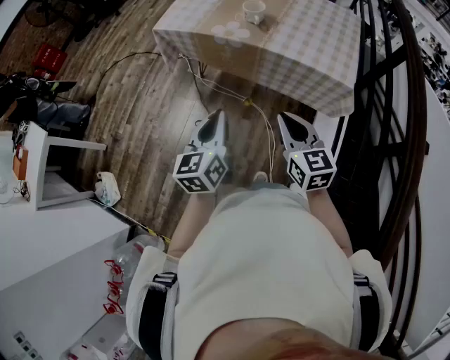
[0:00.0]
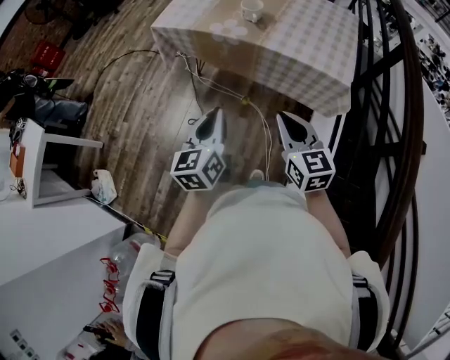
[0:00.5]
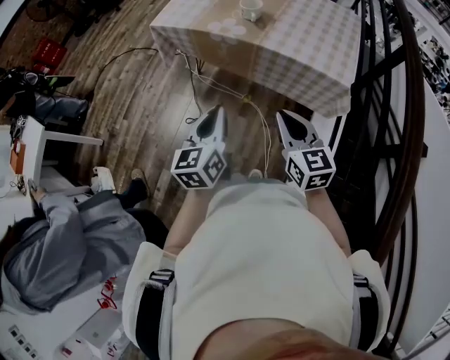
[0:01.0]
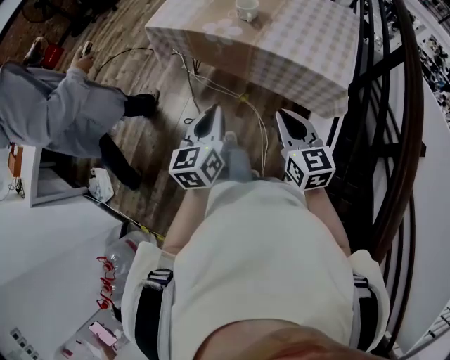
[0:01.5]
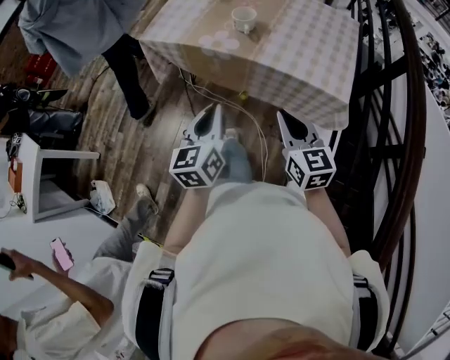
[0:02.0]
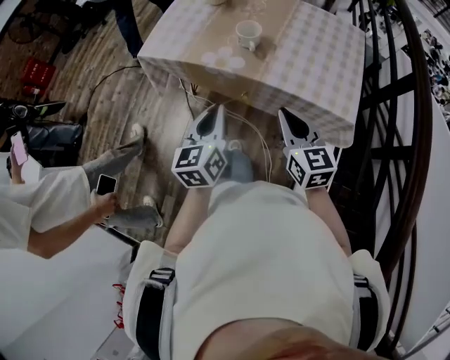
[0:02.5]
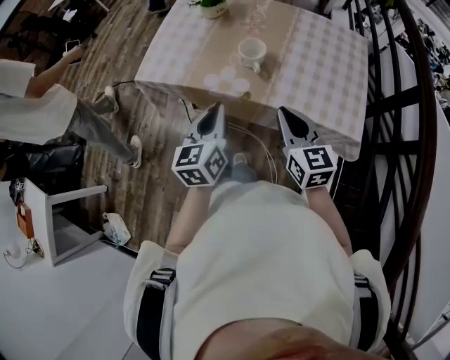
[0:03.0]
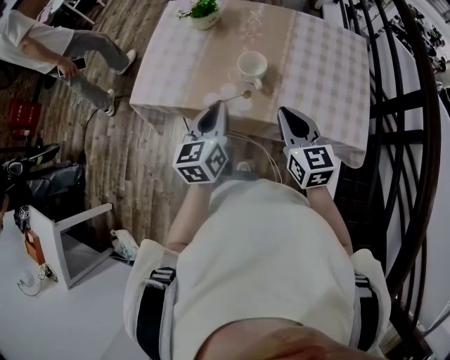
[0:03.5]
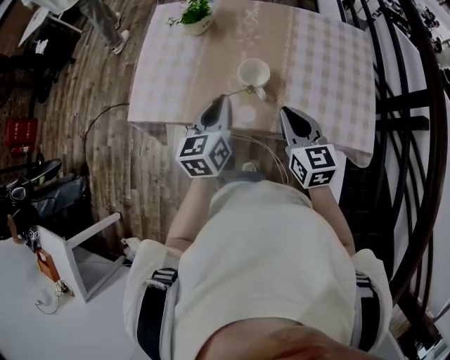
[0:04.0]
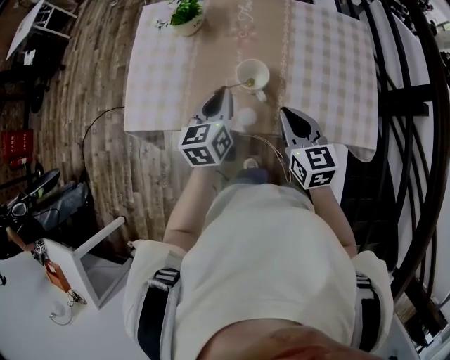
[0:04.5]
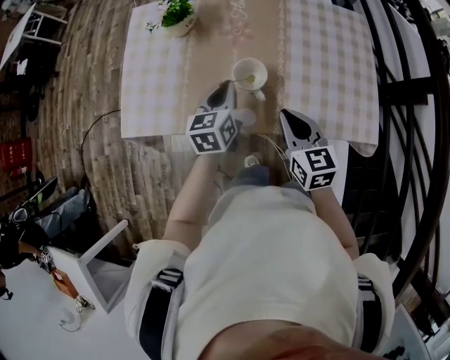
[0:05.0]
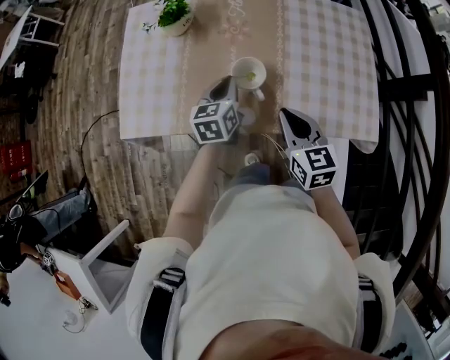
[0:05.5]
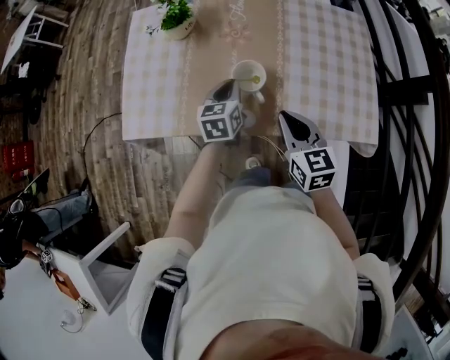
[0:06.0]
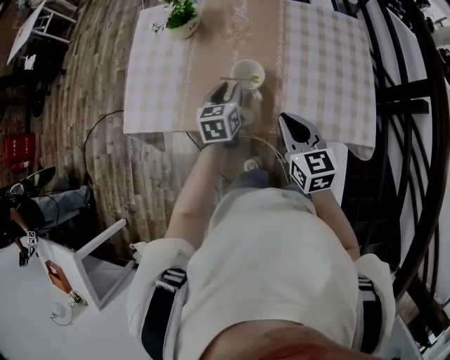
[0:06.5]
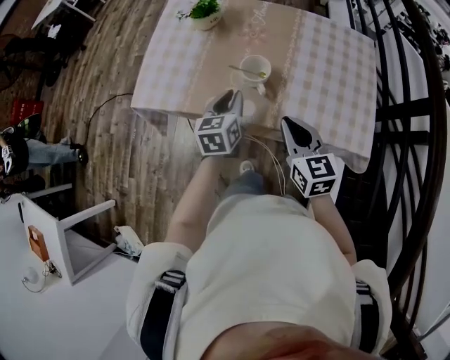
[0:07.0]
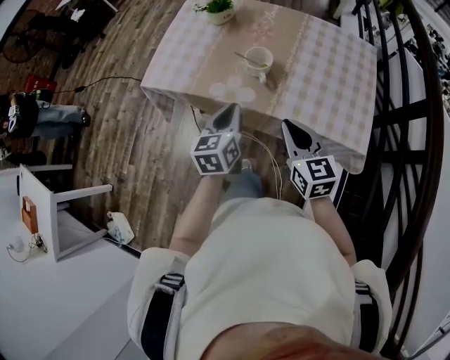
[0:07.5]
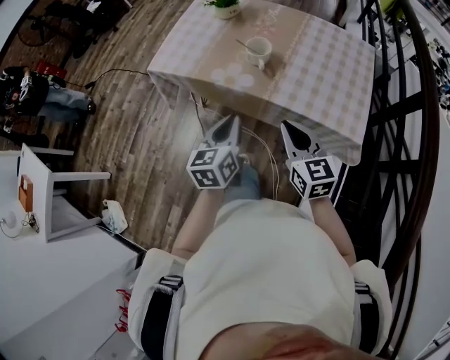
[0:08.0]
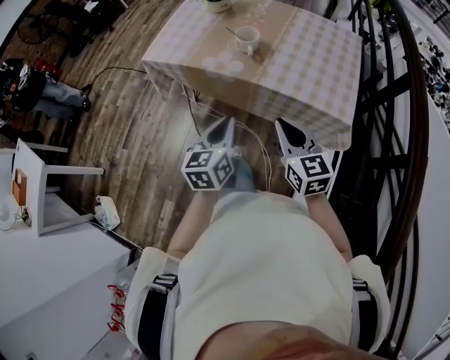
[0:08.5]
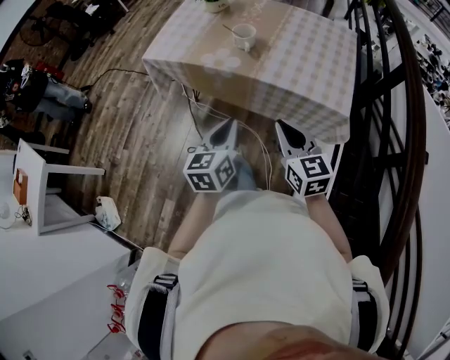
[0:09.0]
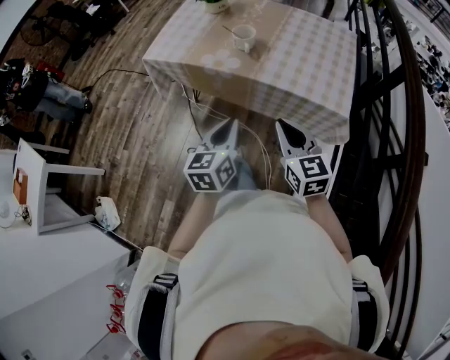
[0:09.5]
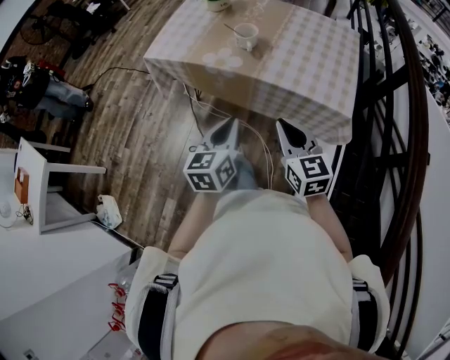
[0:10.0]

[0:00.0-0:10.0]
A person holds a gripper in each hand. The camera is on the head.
0:00.0 to 0:02.0: The two grippers go roughly 10 cm forward.
0:02.0 to 0:04.0: Both grippers move forward, some 25 cm.
0:04.0 to 0:06.0: The left gripper shifts roughly 15 cm downward and forward.
0:06.0 to 0:08.0: The left gripper is displaced backward by about 30 cm, changes its angle by about 20 degrees, and opens, then closes once more. Meanwhile the right gripper moves backward, approximately 20 cm, and turns by about 20 degrees.
0:08.0 to 0:10.0: The two grippers go roughly 10 cm backward.

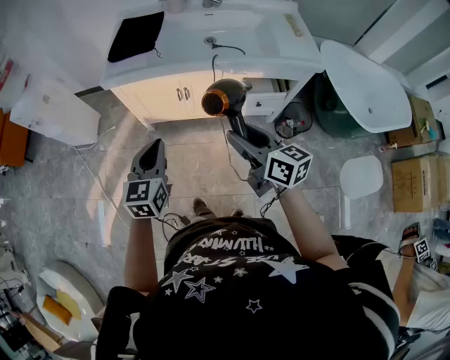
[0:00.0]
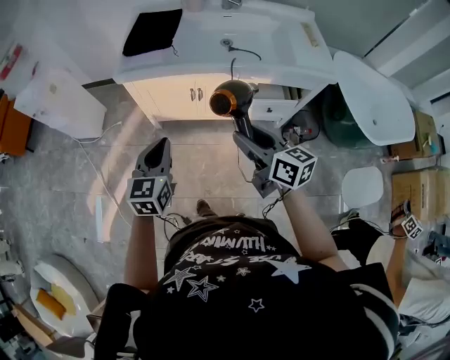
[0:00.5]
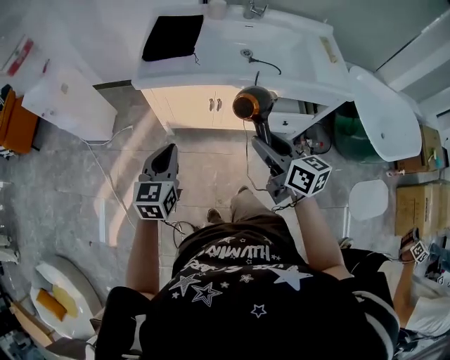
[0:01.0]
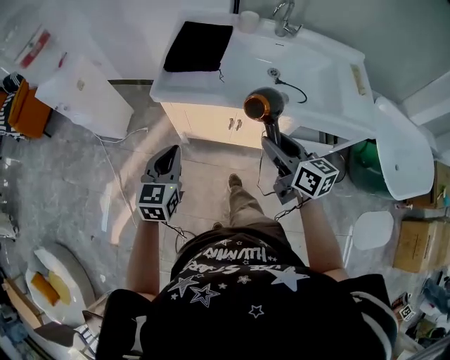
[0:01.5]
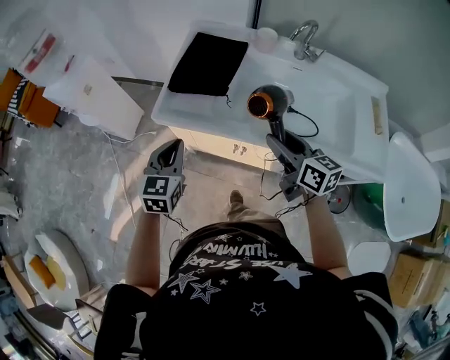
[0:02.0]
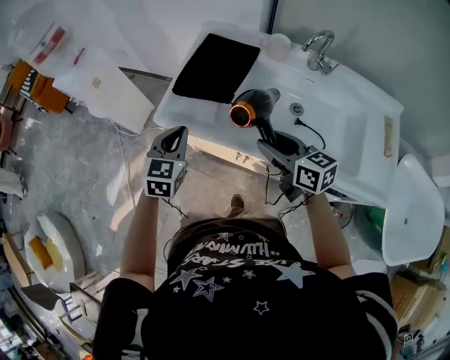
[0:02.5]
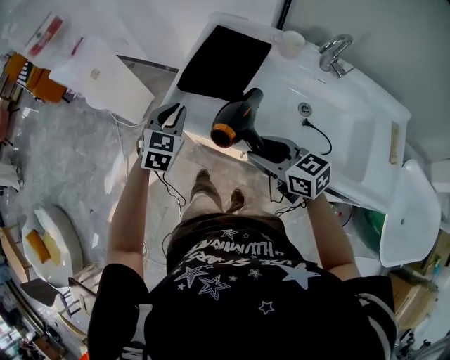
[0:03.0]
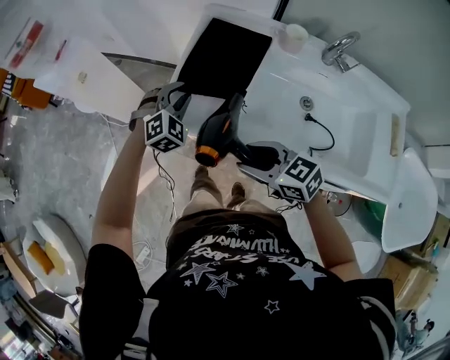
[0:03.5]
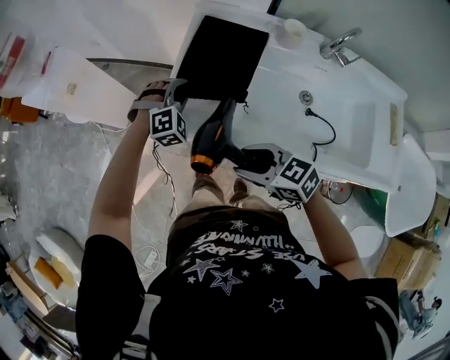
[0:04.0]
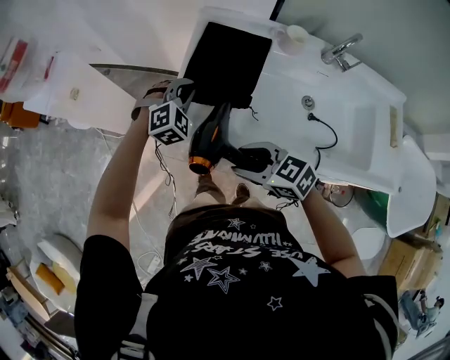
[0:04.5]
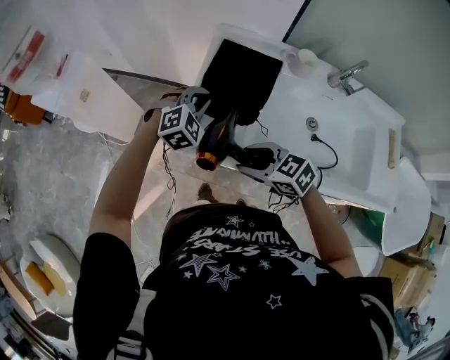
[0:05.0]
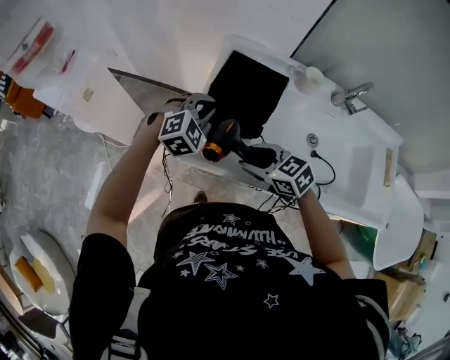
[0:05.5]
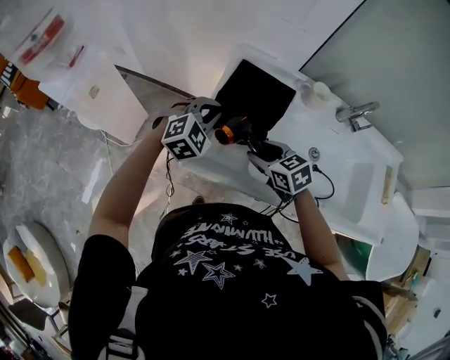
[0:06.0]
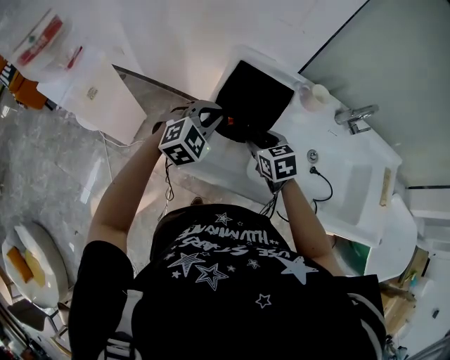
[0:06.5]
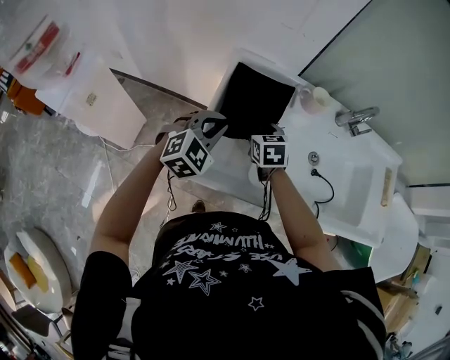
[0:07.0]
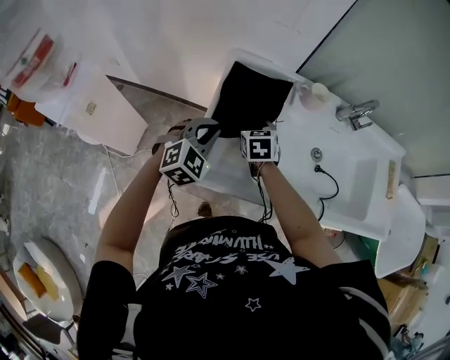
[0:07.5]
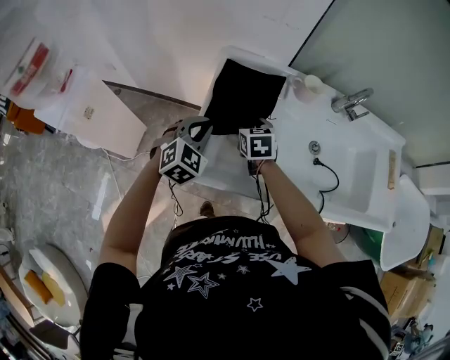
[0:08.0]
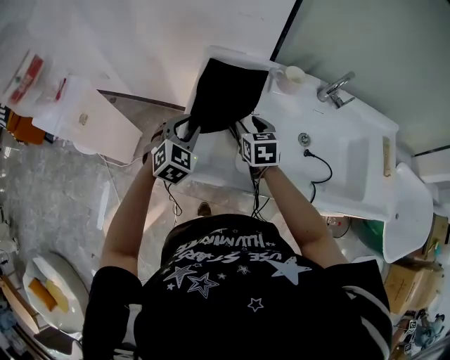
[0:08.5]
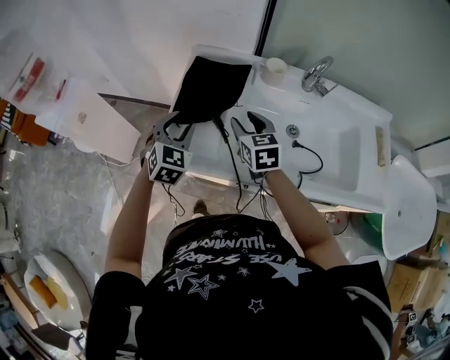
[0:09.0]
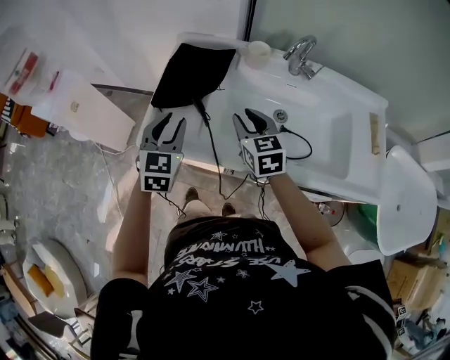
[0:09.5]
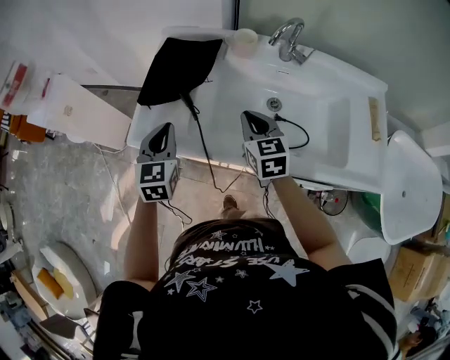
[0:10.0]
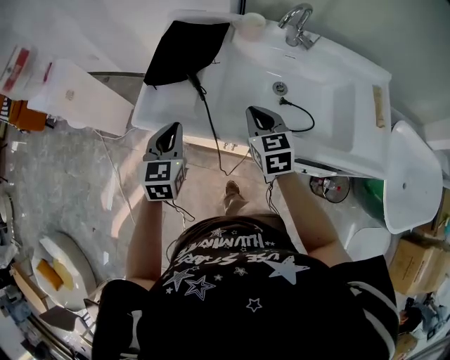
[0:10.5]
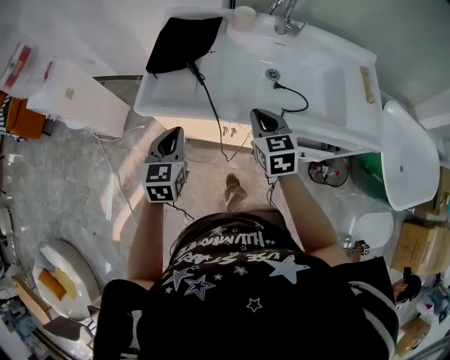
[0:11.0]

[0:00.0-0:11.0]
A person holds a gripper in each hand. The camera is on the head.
0:00.0 to 0:02.0: The two grippers go about 30 cm forward.
0:02.0 to 0:03.5: The left gripper shifts about 20 cm forward, twists roughly 50 degrees clockwise, seen from behind, and opens up, while the right gripper heads to the left, forward and downward, covering approximately 15 cm, and turns by some 40 degrees.
0:03.5 to 0:05.5: The right gripper moves forward, roughly 15 cm; the left gripper shifts about 5 cm forward, and closes.
0:05.5 to 0:07.5: The right gripper ends up roughly 20 cm from where it was, and rotates roughly 40 degrees.
0:07.5 to 0:09.0: The right gripper travels upward, to the right and backward by approximately 15 cm; the left gripper changes place by about 5 cm, swivels approximately 20 degrees, and opens its fingers.
0:09.0 to 0:11.0: The left gripper travels backward by approximately 20 cm, swivels some 30 degrees, and closes. The right gripper heads backward and to the right, covering about 25 cm, and closes up.

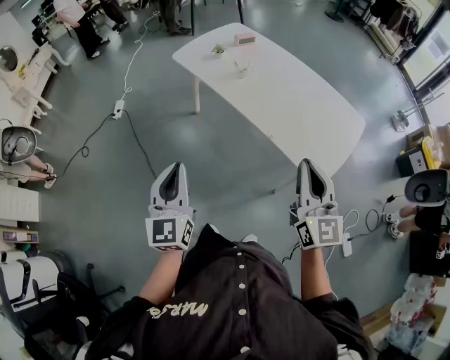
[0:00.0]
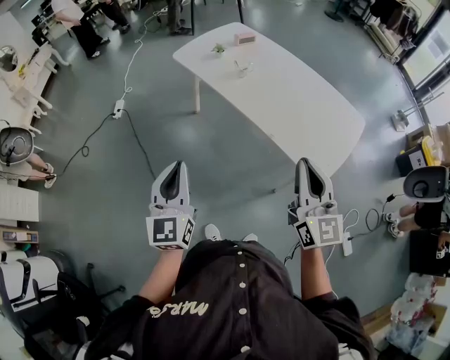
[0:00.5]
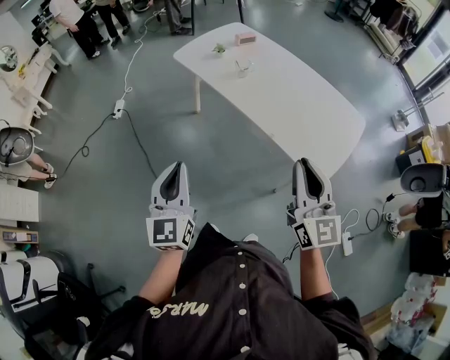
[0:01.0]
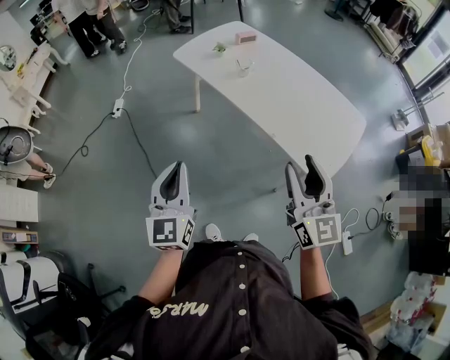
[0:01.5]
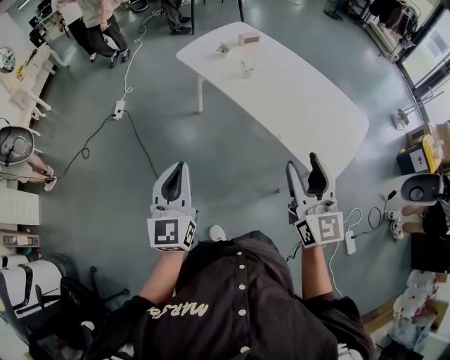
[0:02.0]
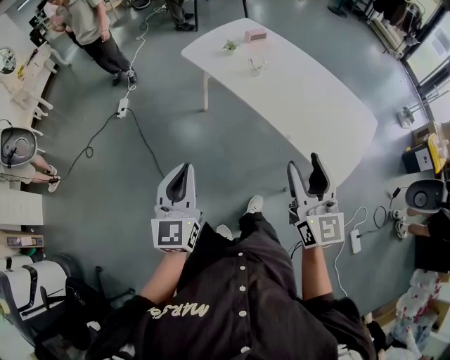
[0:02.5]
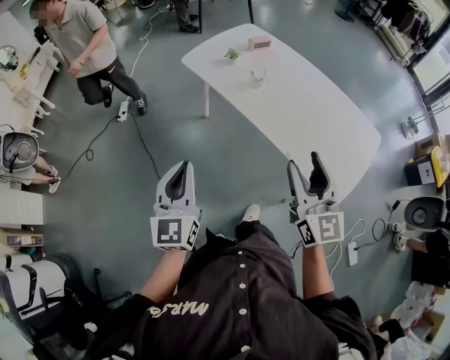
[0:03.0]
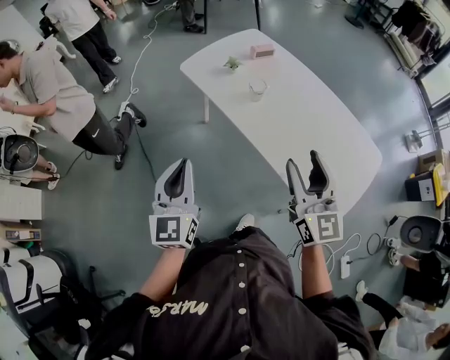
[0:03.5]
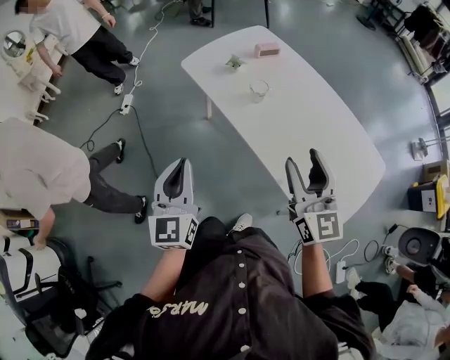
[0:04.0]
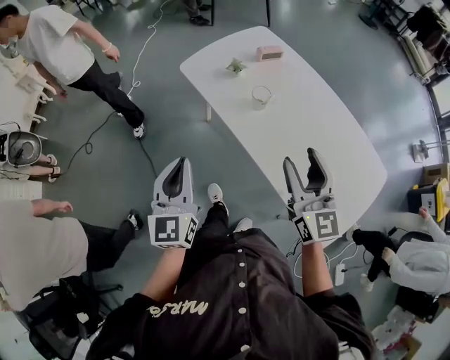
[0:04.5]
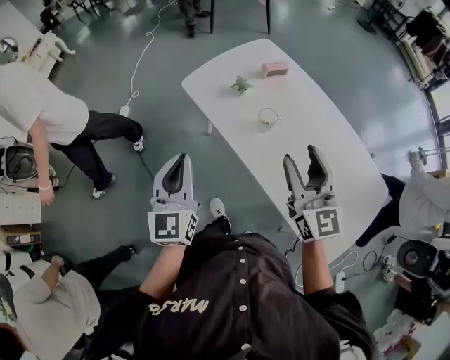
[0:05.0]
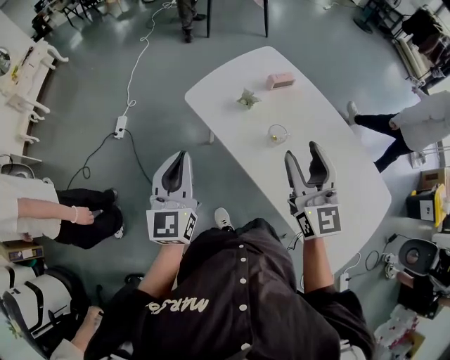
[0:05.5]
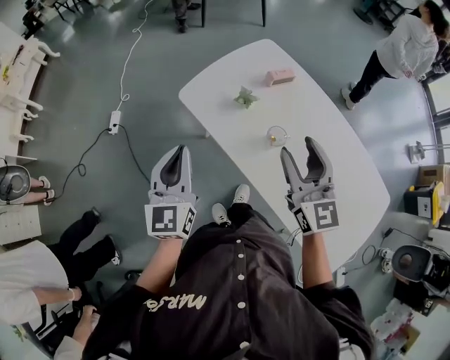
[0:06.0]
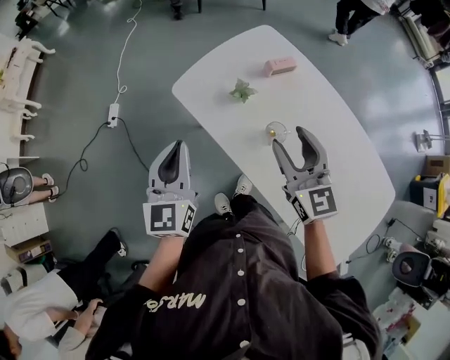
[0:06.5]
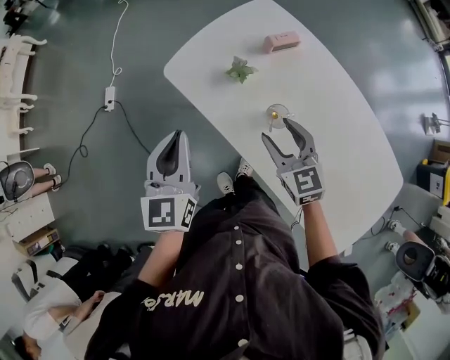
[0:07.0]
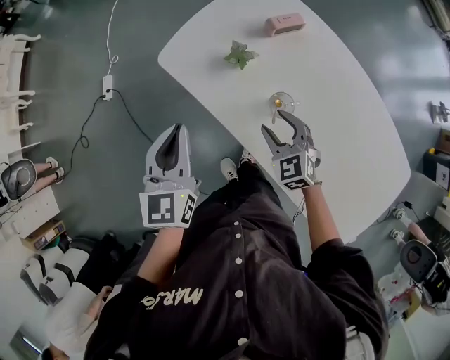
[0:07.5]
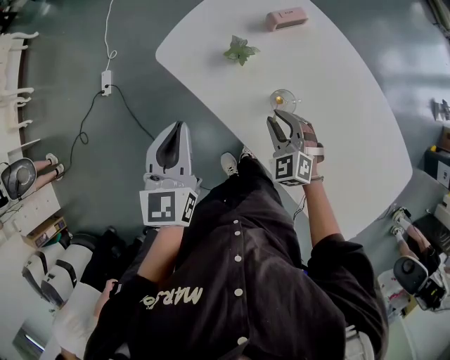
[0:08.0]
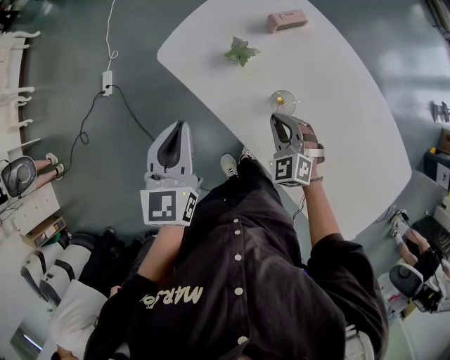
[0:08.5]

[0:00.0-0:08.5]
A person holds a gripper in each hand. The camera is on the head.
0:00.0 to 0:02.0: The right gripper moves to the left, about 5 cm, and opens up.
0:02.0 to 0:04.0: Both grippers travel together forward, approximately 20 cm.
0:04.0 to 0:06.5: The two grippers go some 35 cm forward.
0:06.5 to 0:08.5: The left gripper heads downward, covering about 5 cm. The right gripper travels downward by approximately 25 cm, turns by roughly 50 degrees, and closes up.
